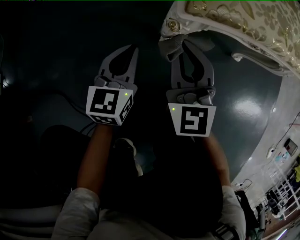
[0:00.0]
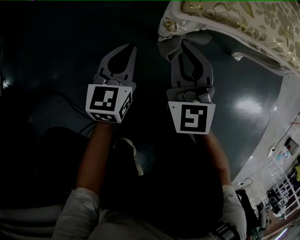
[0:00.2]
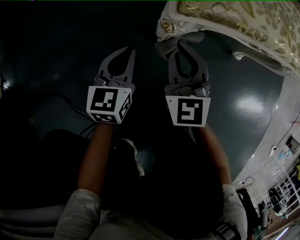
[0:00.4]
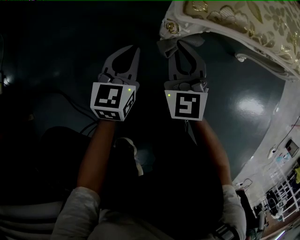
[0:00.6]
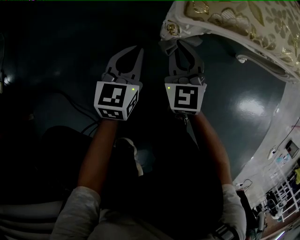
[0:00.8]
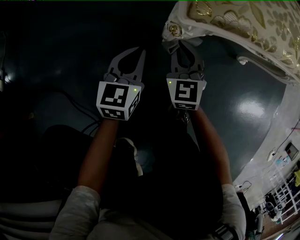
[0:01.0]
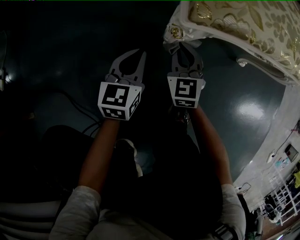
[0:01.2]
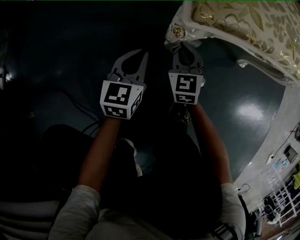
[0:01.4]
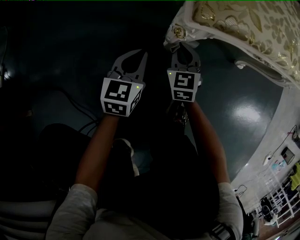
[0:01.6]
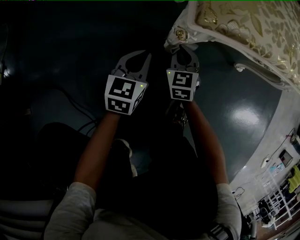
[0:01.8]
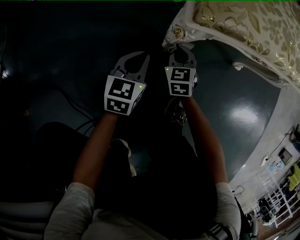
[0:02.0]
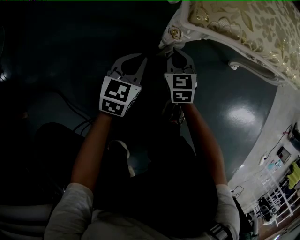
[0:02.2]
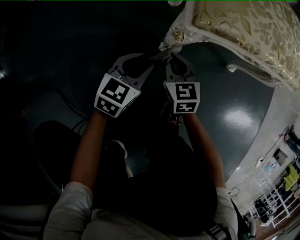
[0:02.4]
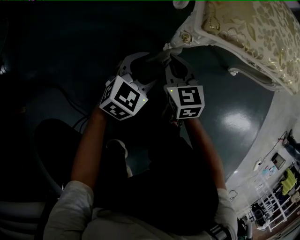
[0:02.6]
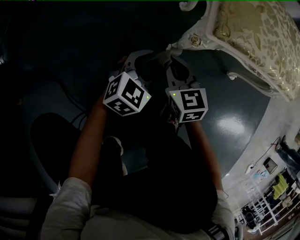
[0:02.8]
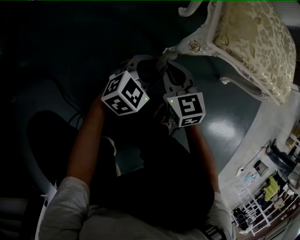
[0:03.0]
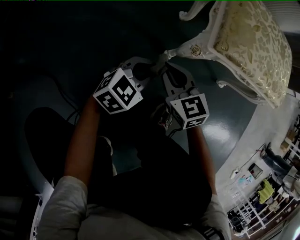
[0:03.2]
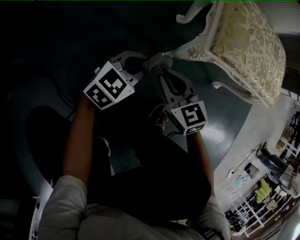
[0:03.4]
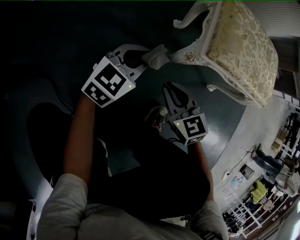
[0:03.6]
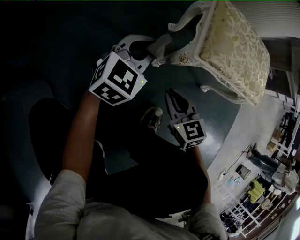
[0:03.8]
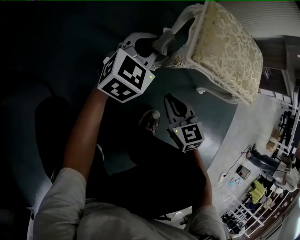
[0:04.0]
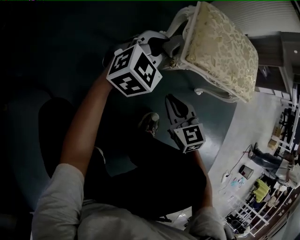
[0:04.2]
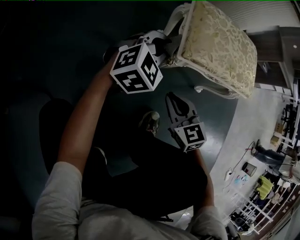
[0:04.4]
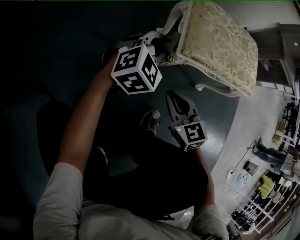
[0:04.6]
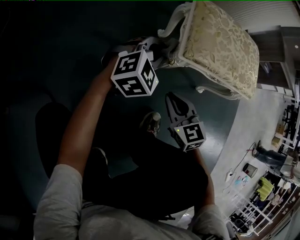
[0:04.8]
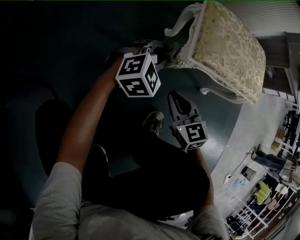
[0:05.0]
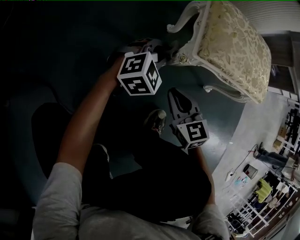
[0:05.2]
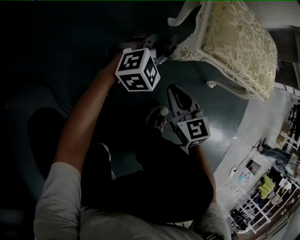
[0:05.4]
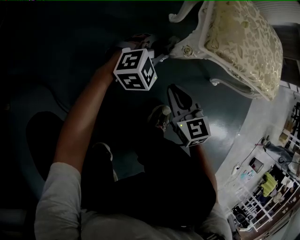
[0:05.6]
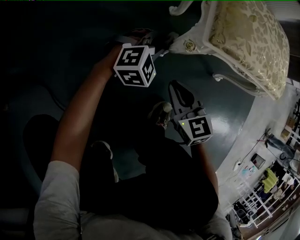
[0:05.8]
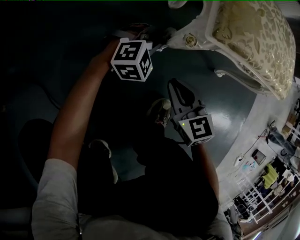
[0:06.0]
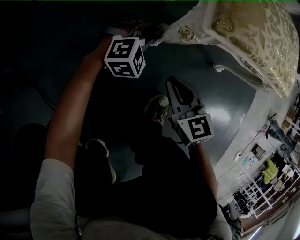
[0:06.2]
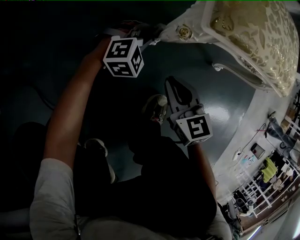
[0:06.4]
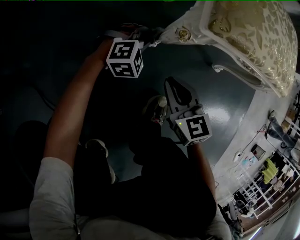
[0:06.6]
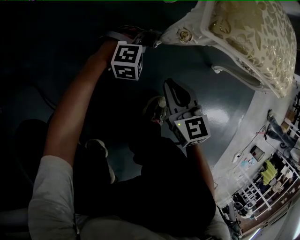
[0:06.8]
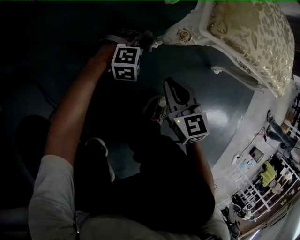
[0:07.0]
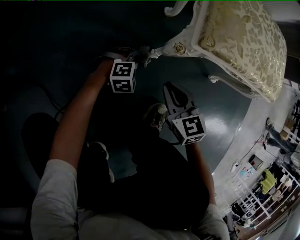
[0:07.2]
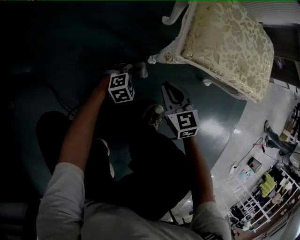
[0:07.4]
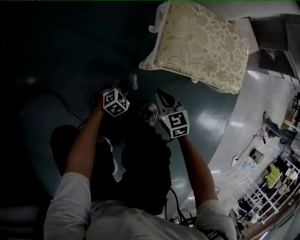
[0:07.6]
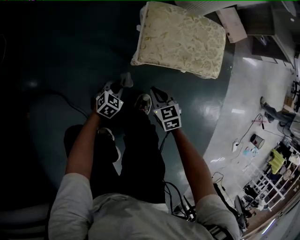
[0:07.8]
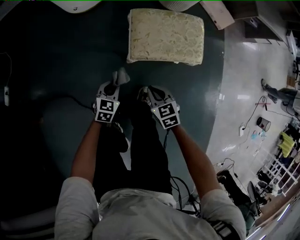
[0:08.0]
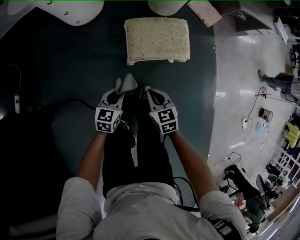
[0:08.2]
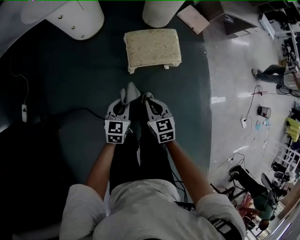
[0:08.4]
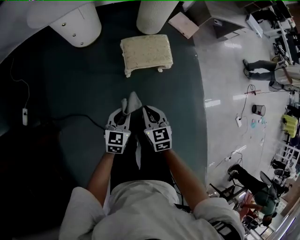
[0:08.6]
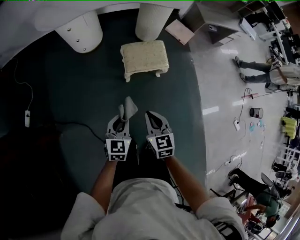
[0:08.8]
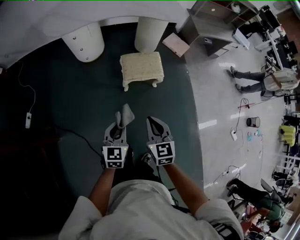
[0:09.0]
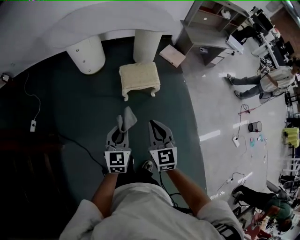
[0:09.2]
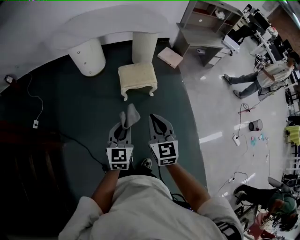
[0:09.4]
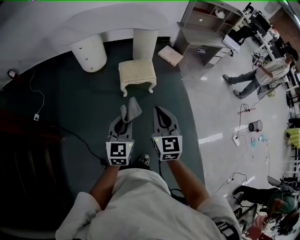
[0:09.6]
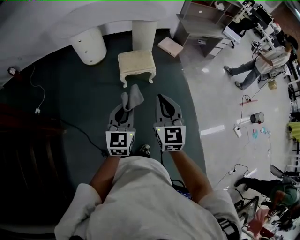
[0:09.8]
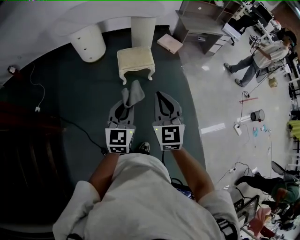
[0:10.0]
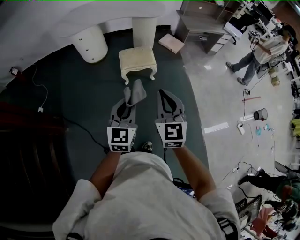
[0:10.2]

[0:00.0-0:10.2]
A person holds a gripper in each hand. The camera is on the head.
0:00.0 to 0:01.4: The left gripper shifts approximately 5 cm downward; the right gripper heads downward, covering some 15 cm, and rotates approximately 20 degrees.
0:01.4 to 0:03.0: The right gripper heads upward, backward and to the left, covering some 10 cm, and changes its angle by roughly 20 degrees. The left gripper moves approximately 5 cm, swivels about 30 degrees, and opens its fingers.
0:03.0 to 0:04.4: The right gripper goes about 10 cm upward, to the right and backward. The left gripper heads upward and forward, covering roughly 20 cm, swivels roughly 20 degrees, and closes.
0:04.4 to 0:05.8: The right gripper is displaced downward by approximately 10 cm. The left gripper heads downward, covering about 15 cm.
0:05.8 to 0:07.2: The left gripper heads downward and backward, covering approximately 15 cm, and changes its angle by roughly 20 degrees.
0:07.2 to 0:08.8: The two grippers go approximately 70 cm upward. The right gripper swivels approximately 30 degrees. Meanwhile the left gripper rotates around the line of its fingers by some 50 degrees, counterclockwise from behind.
0:08.8 to 0:10.2: The two grippers go some 35 cm upward, backward and to the right. The left gripper turns by some 20 degrees. The right gripper changes its angle by roughly 30 degrees.

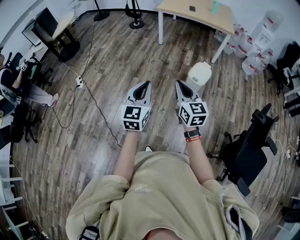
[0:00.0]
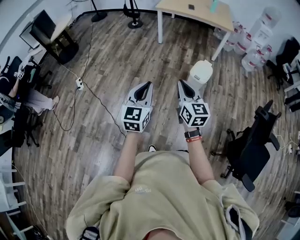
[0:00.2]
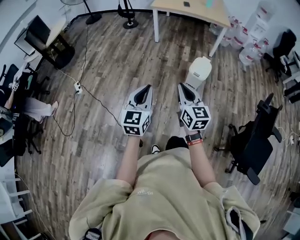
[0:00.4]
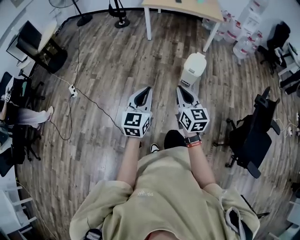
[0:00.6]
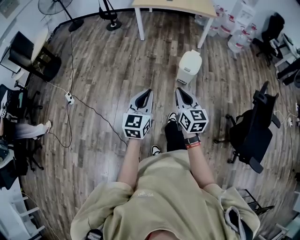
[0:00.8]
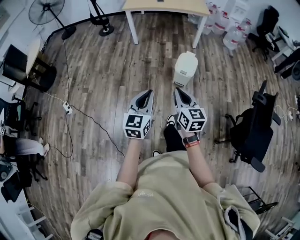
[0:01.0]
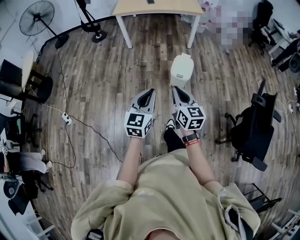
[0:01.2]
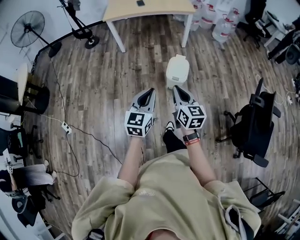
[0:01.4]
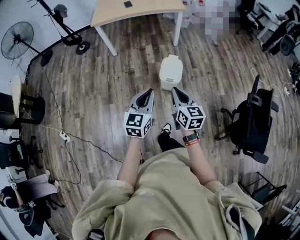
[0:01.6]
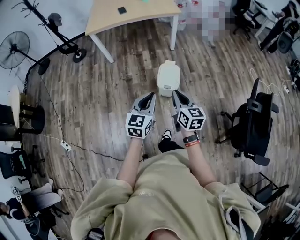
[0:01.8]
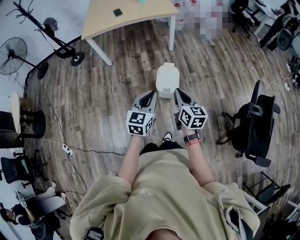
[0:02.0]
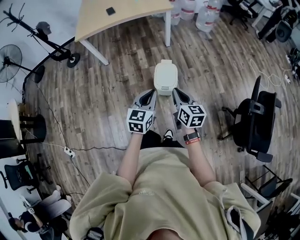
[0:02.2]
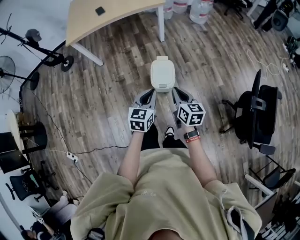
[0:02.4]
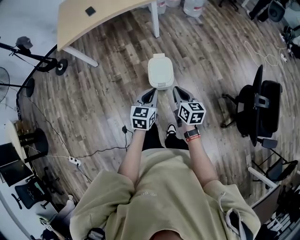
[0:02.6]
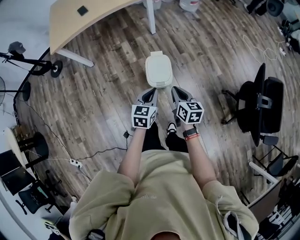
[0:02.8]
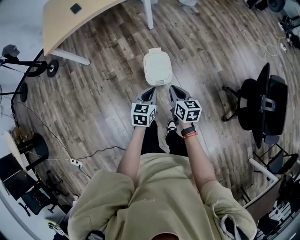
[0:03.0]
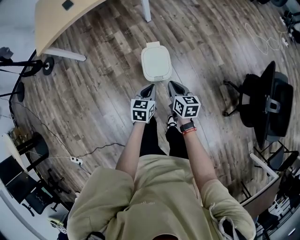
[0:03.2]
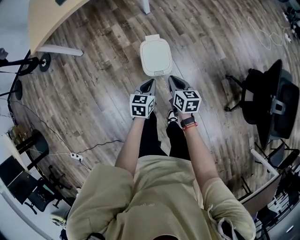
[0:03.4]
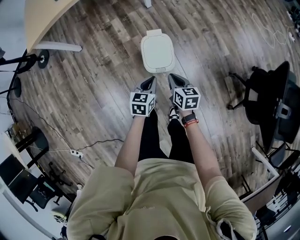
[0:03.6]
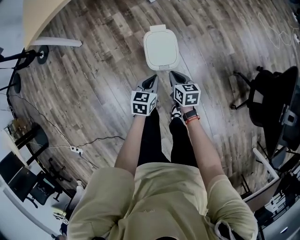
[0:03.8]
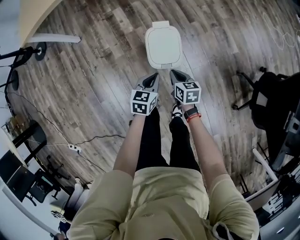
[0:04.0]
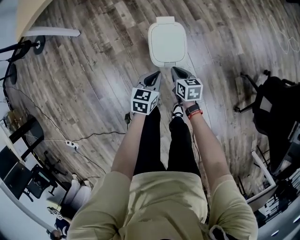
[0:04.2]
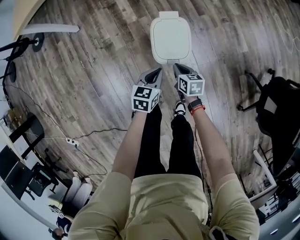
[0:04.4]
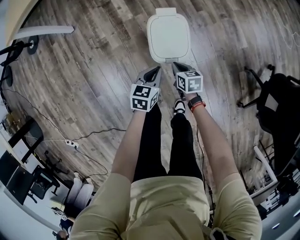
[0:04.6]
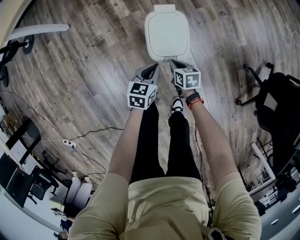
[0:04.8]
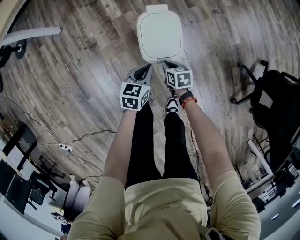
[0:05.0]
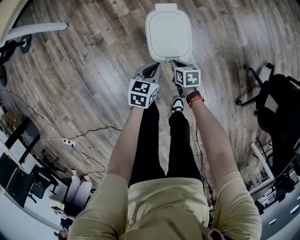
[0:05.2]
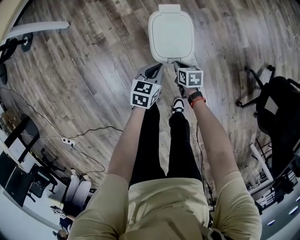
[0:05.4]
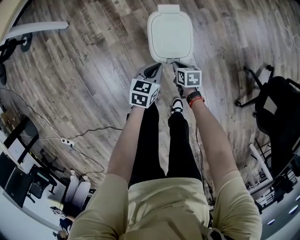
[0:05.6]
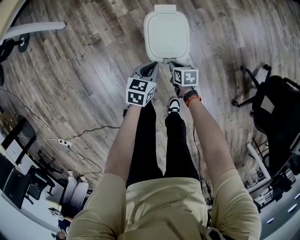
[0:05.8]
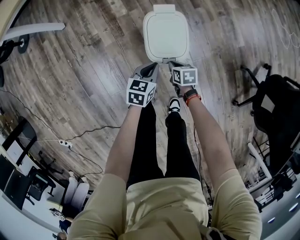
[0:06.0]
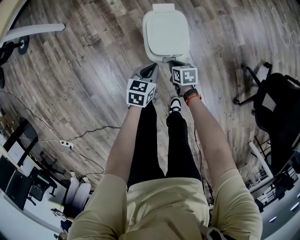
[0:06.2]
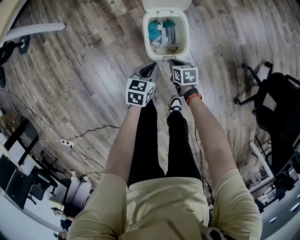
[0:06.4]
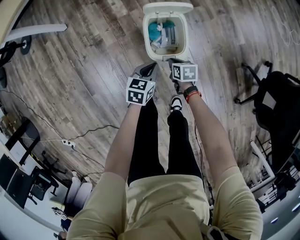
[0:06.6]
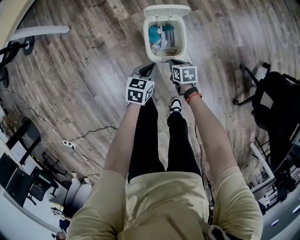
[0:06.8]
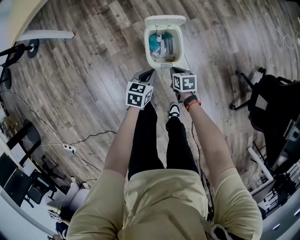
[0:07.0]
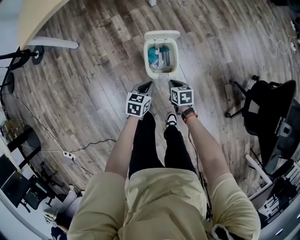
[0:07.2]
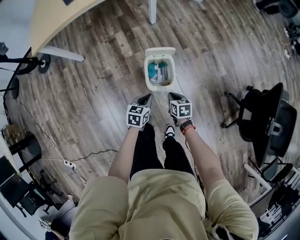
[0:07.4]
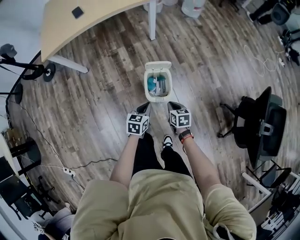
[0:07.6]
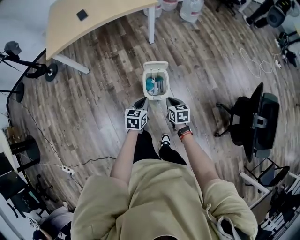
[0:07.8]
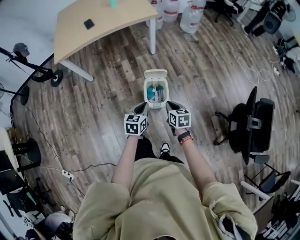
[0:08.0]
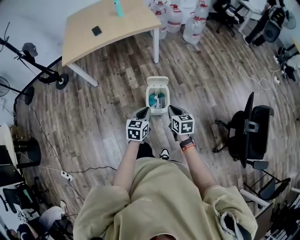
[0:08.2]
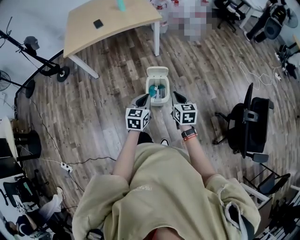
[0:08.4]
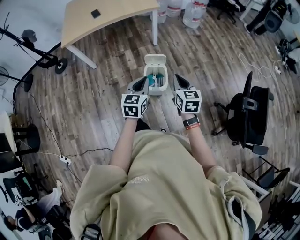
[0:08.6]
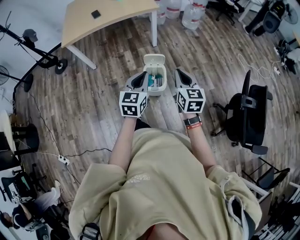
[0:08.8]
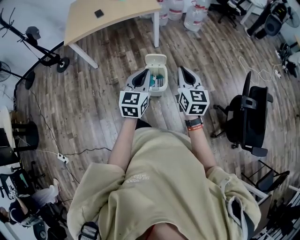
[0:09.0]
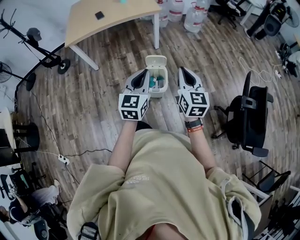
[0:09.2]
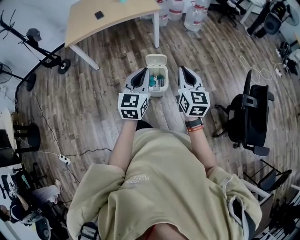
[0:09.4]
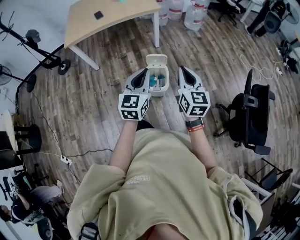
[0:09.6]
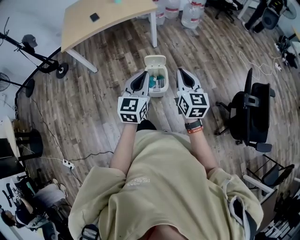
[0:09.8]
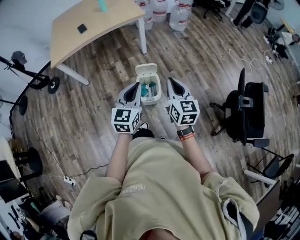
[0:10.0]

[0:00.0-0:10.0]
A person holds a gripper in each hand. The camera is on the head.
0:00.0 to 0:01.4: The two grippers go some 25 cm forward. The left gripper swivels roughly 30 degrees. Meanwhile the right gripper turns by about 30 degrees.
0:01.4 to 0:02.8: The grippers both shift forward and downward by roughly 40 cm. The right gripper swivels roughly 30 degrees, while the left gripper changes its angle by approximately 30 degrees.
0:02.8 to 0:04.2: The two grippers go approximately 35 cm downward.
0:04.2 to 0:05.8: The grippers both shift downward by roughly 15 cm.
0:05.8 to 0:07.2: Both grippers move upward, some 15 cm.
0:07.2 to 0:08.6: The grippers both shift upward by about 40 cm. The left gripper turns by about 30 degrees. Meanwhile the right gripper tips its fingers upward by roughly 30 degrees.
0:08.6 to 0:10.0: The grippers both shift upward by approximately 5 cm.

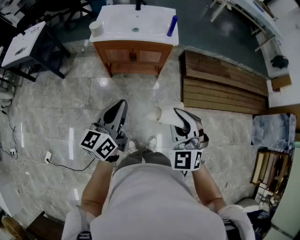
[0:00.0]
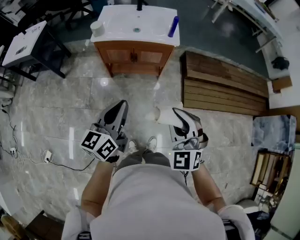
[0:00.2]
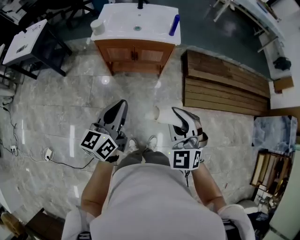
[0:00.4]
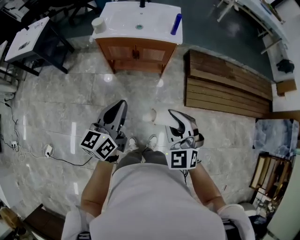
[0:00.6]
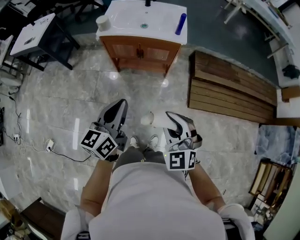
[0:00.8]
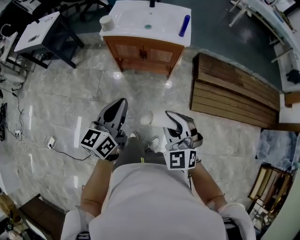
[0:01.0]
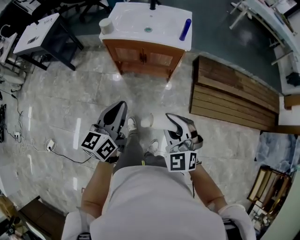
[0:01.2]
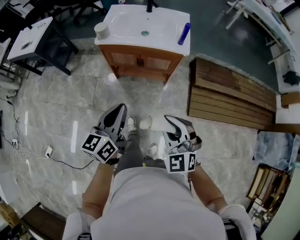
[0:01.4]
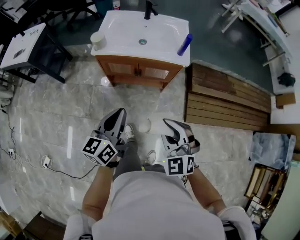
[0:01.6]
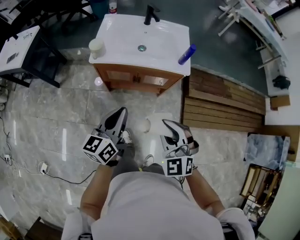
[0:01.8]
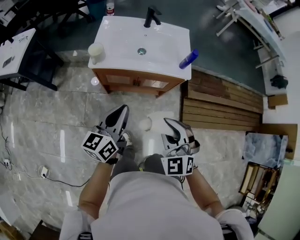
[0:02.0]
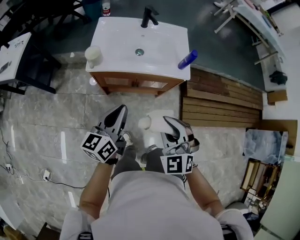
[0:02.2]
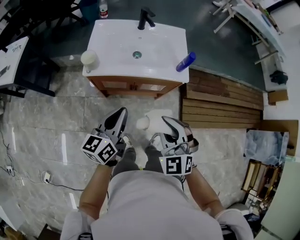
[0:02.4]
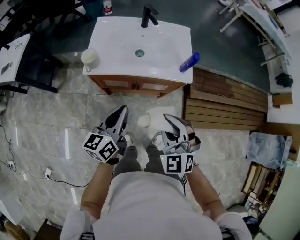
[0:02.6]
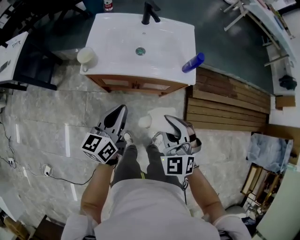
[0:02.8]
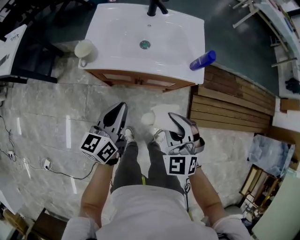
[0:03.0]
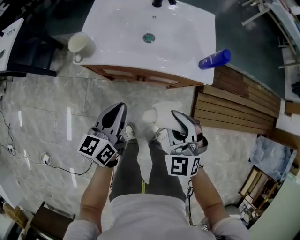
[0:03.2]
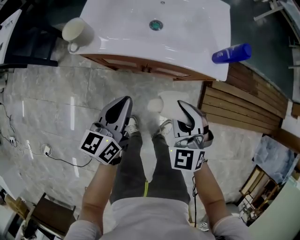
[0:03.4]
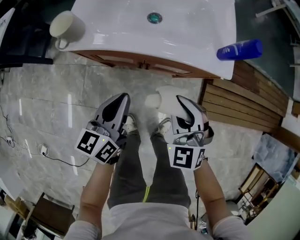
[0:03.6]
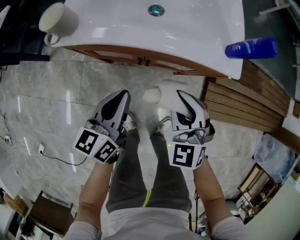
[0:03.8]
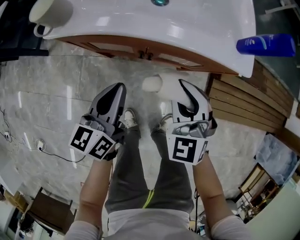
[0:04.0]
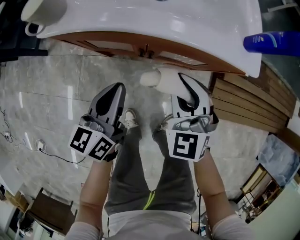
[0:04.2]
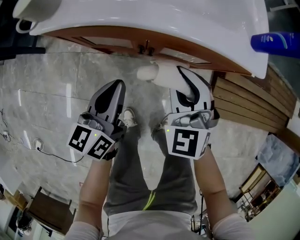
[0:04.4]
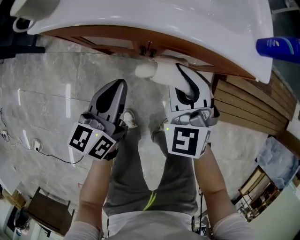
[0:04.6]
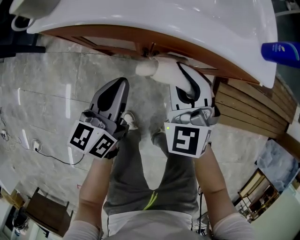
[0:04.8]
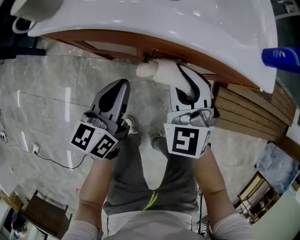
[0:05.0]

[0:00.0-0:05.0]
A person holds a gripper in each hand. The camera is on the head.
0:00.0 to 0:01.6: The two grippers go approximately 15 cm forward.
0:01.6 to 0:03.4: Both grippers move forward and downward, approximately 35 cm.
0:03.4 to 0:05.0: The right gripper is displaced downward and forward by approximately 20 cm, while the left gripper goes approximately 20 cm downward.
